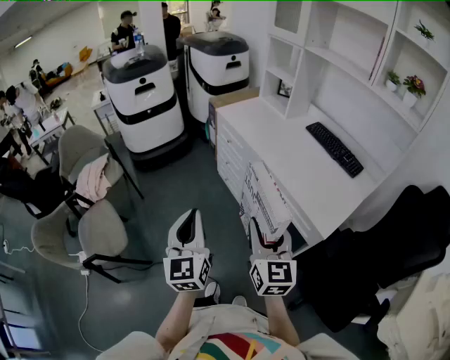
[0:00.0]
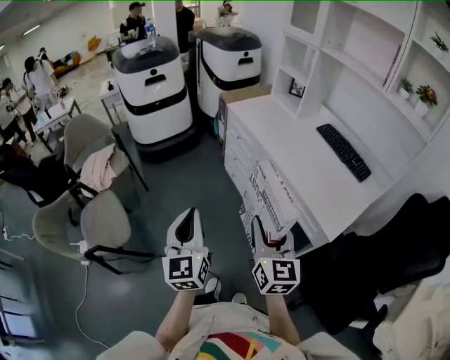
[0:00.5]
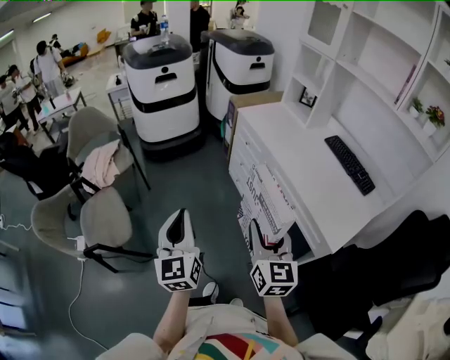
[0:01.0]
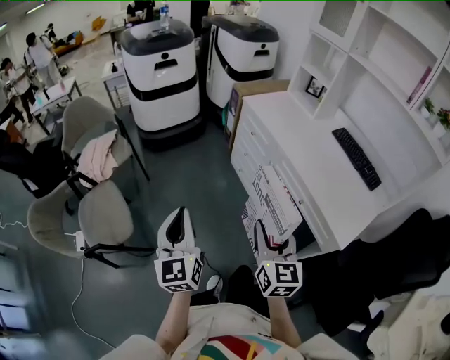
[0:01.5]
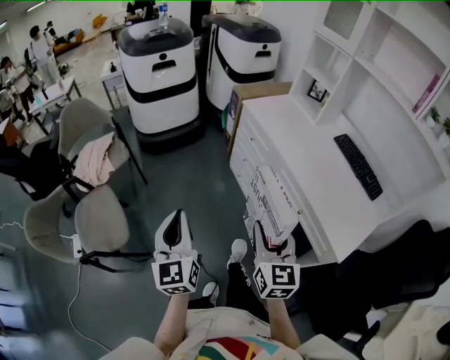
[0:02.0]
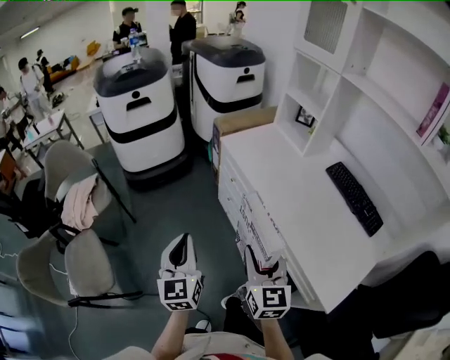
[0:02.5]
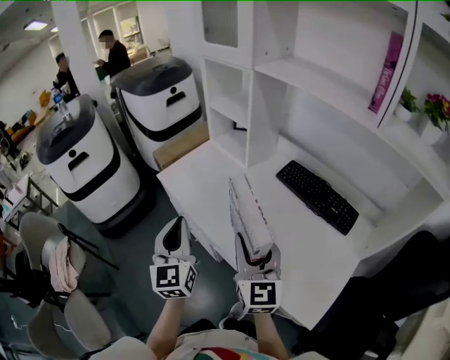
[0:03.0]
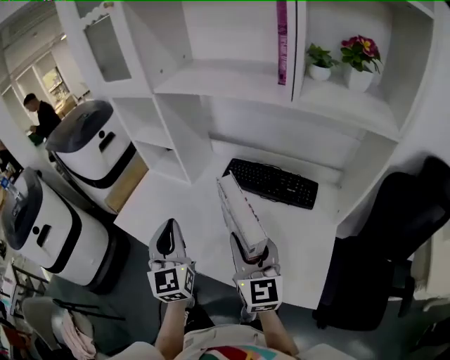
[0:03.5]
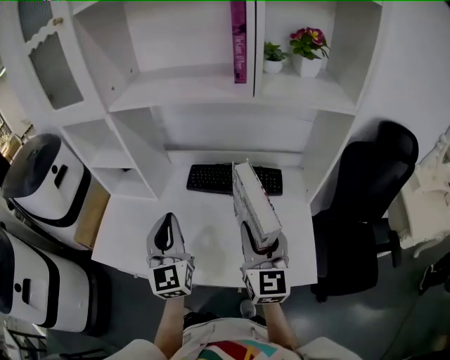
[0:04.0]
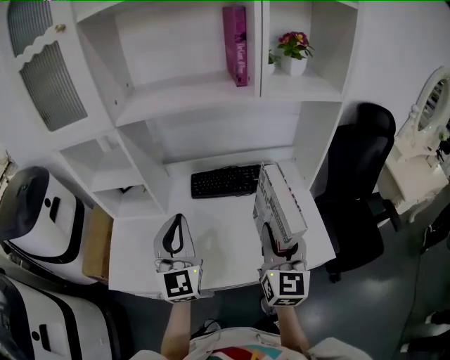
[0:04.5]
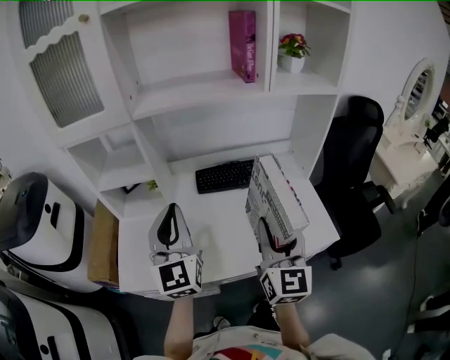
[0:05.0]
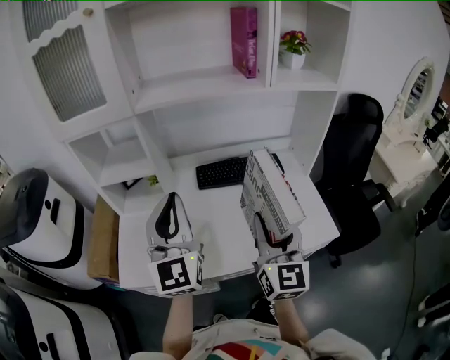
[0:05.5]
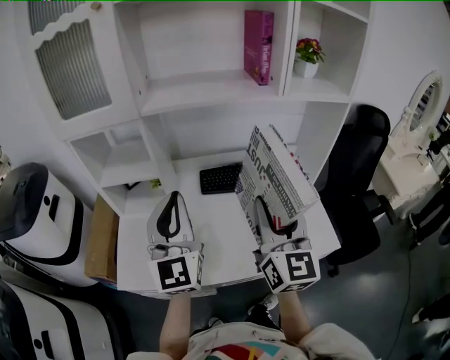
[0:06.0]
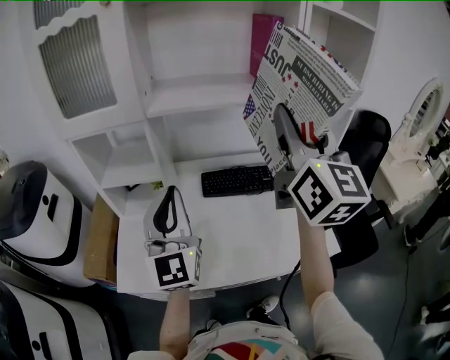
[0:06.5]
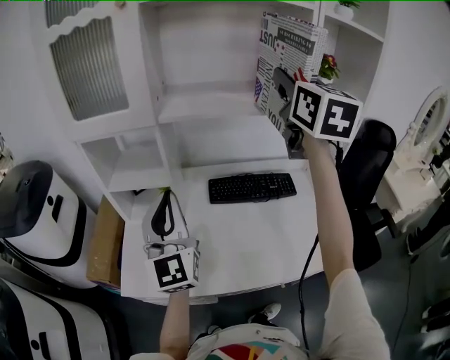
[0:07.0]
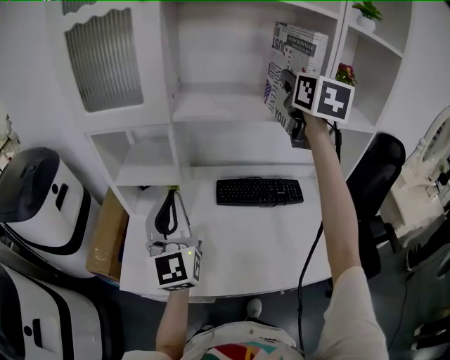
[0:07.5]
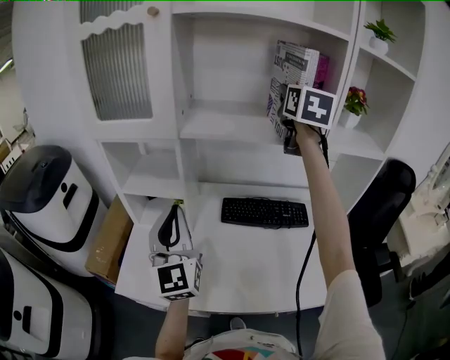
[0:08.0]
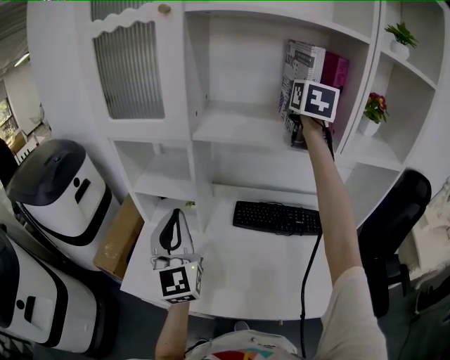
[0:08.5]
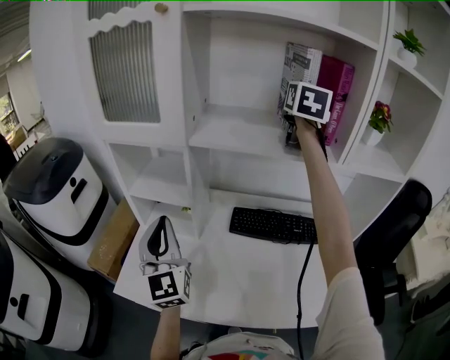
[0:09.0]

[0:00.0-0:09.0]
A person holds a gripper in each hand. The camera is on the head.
0:00.0 to 0:02.0: The right gripper travels forward and to the left by approximately 15 cm, while the left gripper heads to the left and forward, covering approximately 15 cm.
0:02.0 to 0:04.5: Both grippers are carried about 60 cm. The left gripper changes its angle by approximately 80 degrees; the right gripper turns by about 80 degrees.
0:04.5 to 0:07.0: The right gripper goes some 40 cm upward and forward. The left gripper moves to the left and upward, some 15 cm.
0:07.0 to 0:09.0: The right gripper shifts approximately 20 cm forward; the left gripper ends up roughly 5 cm from where it was.

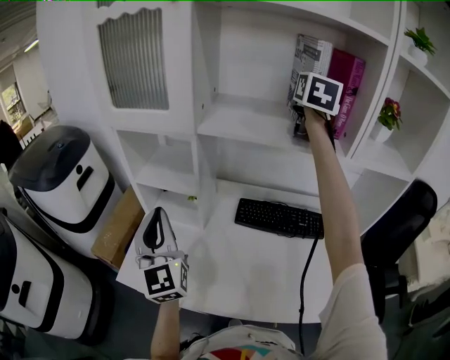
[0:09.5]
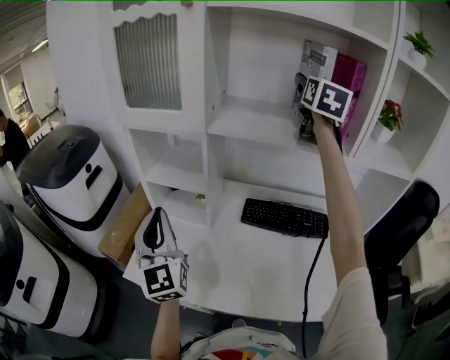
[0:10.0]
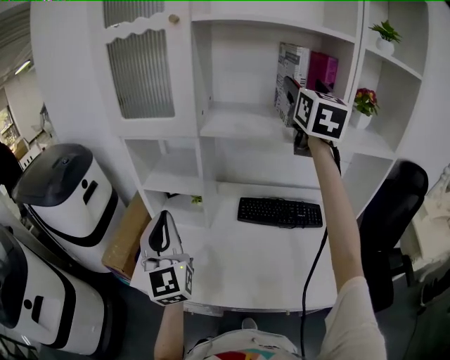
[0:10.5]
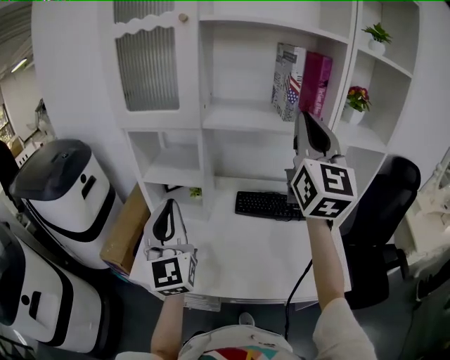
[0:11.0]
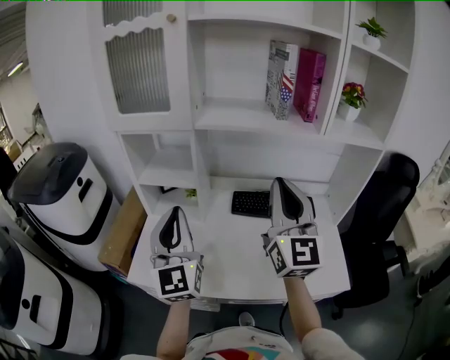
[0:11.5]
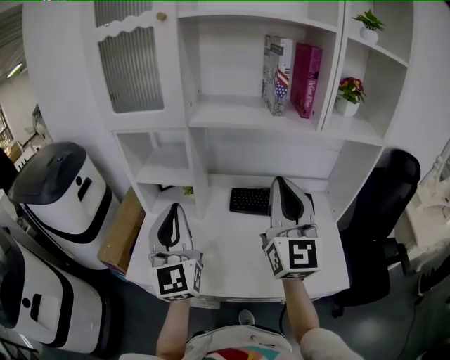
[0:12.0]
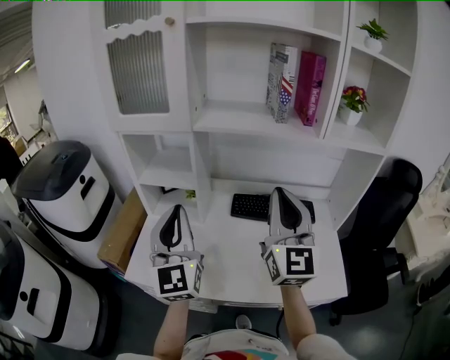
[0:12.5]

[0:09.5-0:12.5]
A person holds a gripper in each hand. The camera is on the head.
0:09.5 to 0:11.0: The left gripper shifts about 5 cm backward. The right gripper heads backward, covering approximately 30 cm, swivels some 30 degrees, and closes.
0:11.0 to 0:12.5: The right gripper shifts approximately 15 cm downward, while the left gripper is displaced to the right by some 5 cm.

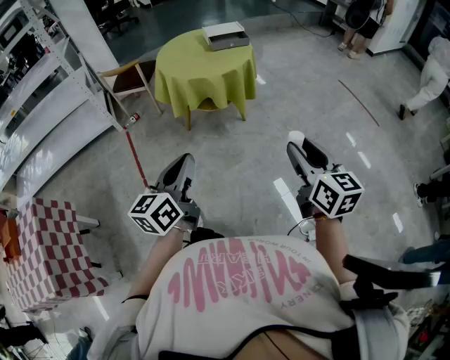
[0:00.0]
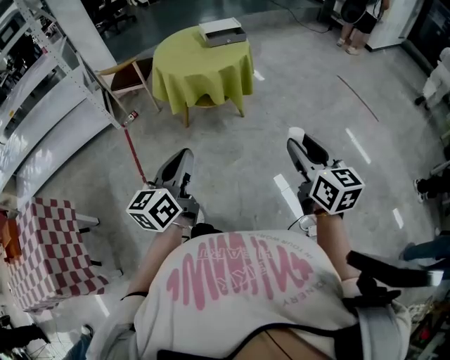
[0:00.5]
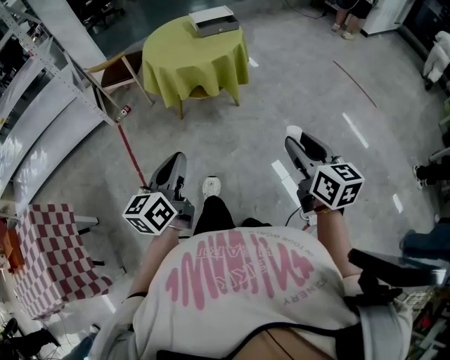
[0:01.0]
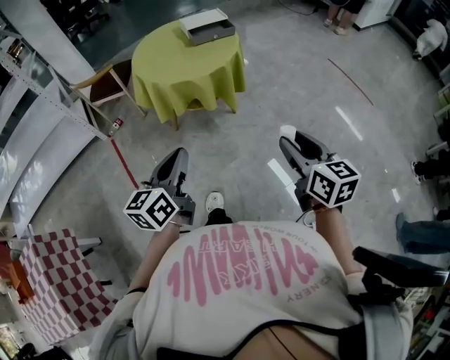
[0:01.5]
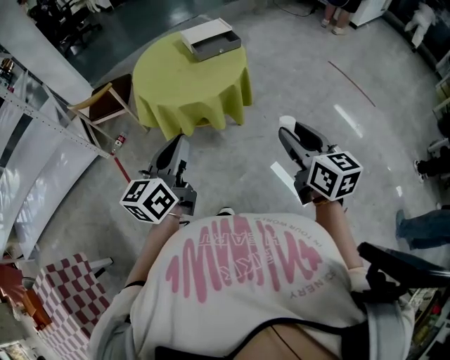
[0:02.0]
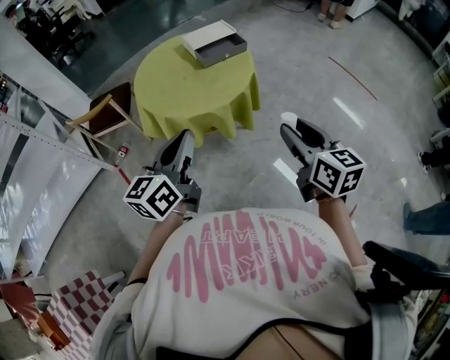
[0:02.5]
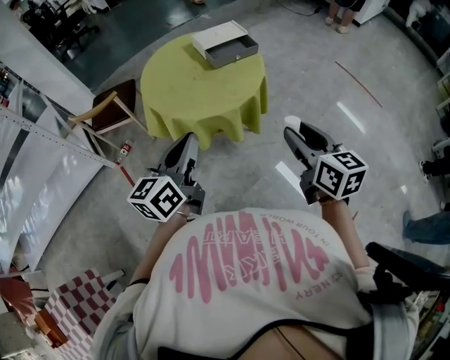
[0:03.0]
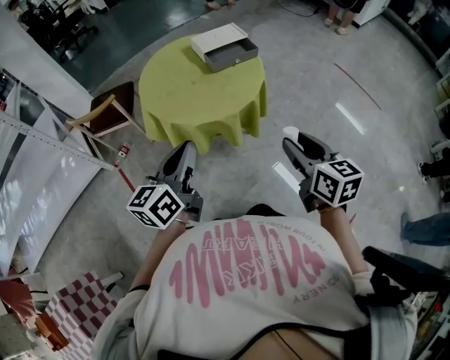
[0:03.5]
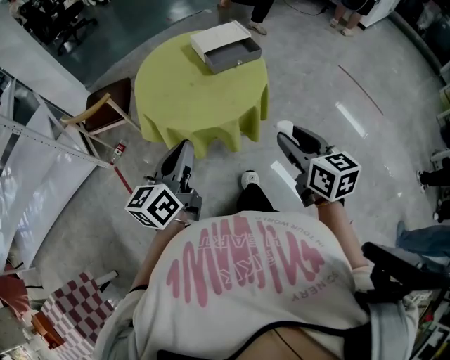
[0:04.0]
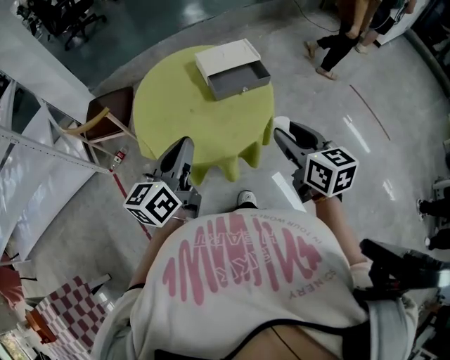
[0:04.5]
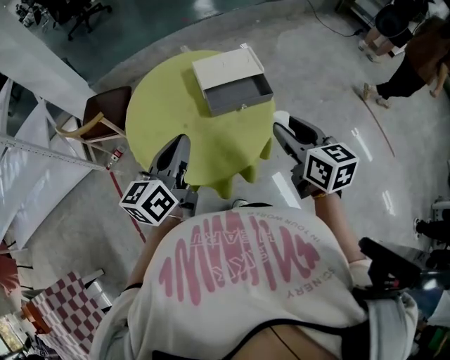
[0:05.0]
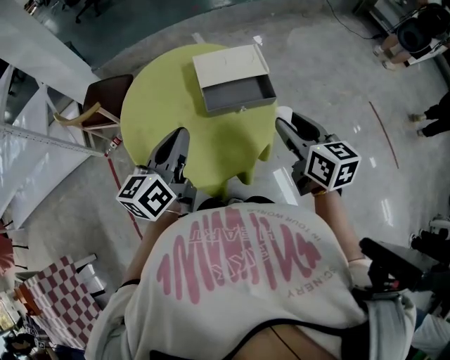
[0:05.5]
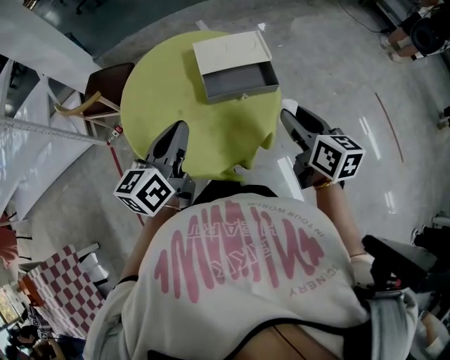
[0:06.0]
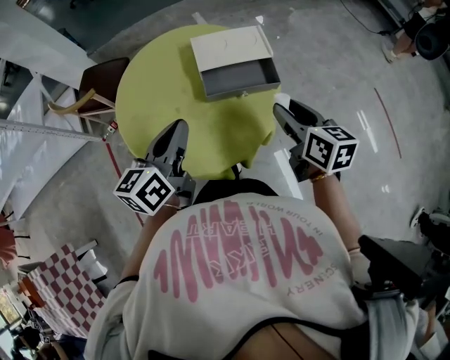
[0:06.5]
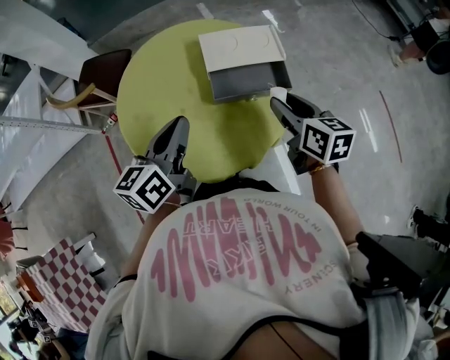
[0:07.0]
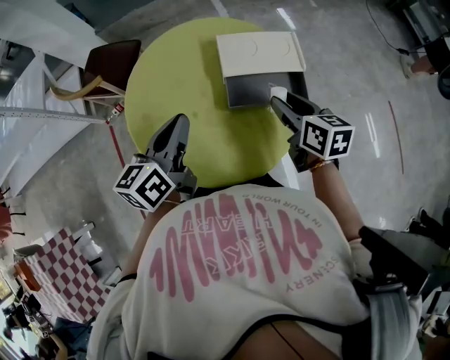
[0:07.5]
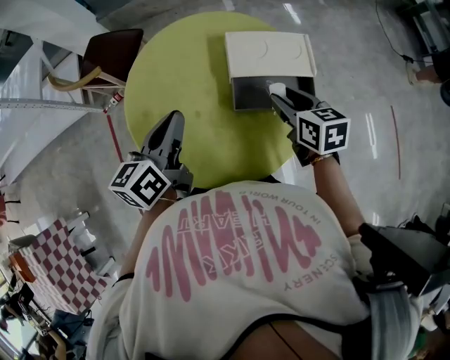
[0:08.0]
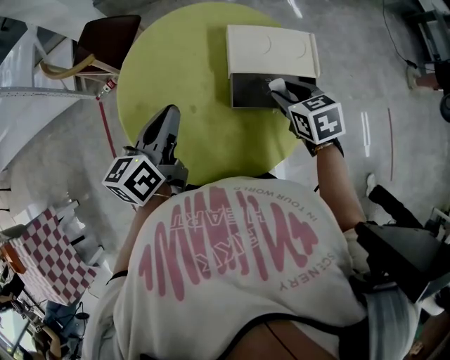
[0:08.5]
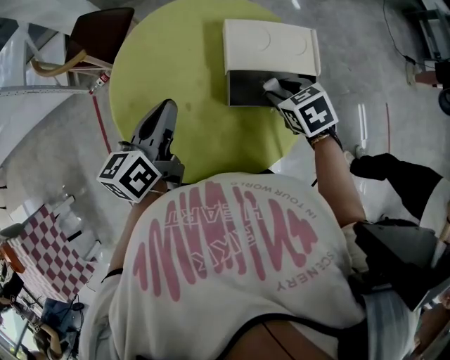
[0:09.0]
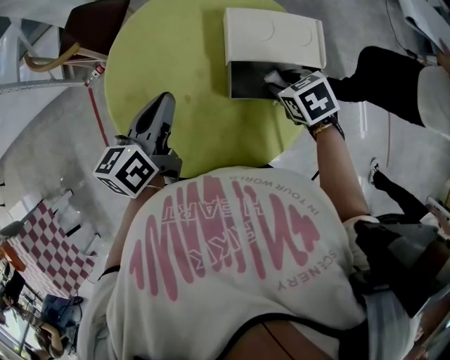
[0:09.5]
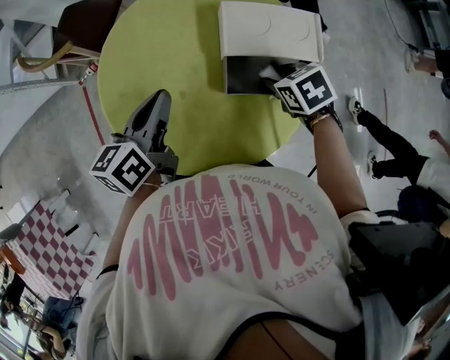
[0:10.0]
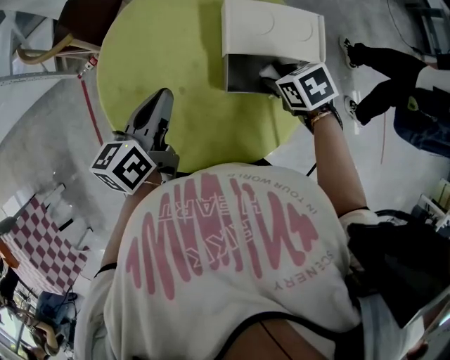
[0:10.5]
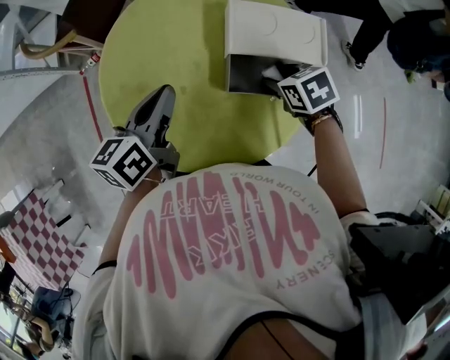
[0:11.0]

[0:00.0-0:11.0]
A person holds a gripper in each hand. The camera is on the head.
0:00.0 to 0:02.0: Both grippers travel together forward, approximately 25 cm.
0:02.0 to 0:03.5: The grippers both shift forward and to the left by approximately 10 cm.
0:03.5 to 0:05.5: The grippers both shift forward by approximately 35 cm.
0:05.5 to 0:07.5: The left gripper heads forward and to the left, covering approximately 10 cm. The right gripper travels forward, downward and to the left by about 15 cm.
0:07.5 to 0:09.0: The right gripper goes about 10 cm downward, and tilts its fingers approximately 30 degrees downward. Meanwhile the left gripper shifts by about 5 cm.
0:09.0 to 0:11.0: The grippers make only small movements.

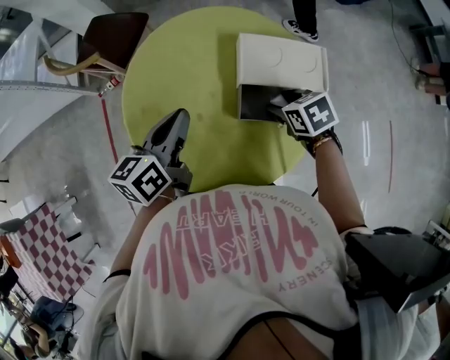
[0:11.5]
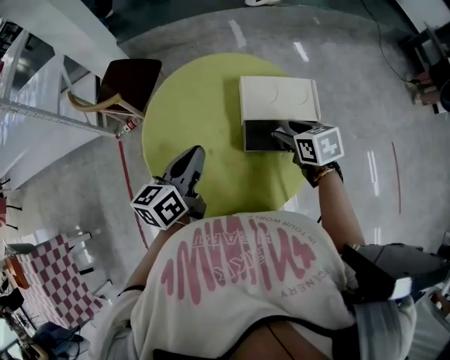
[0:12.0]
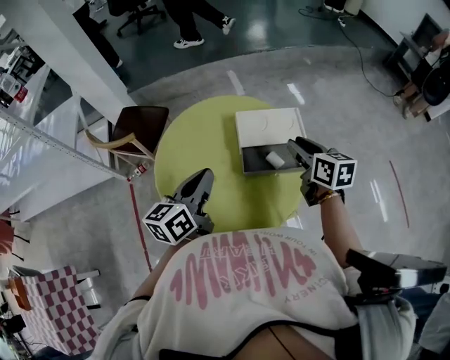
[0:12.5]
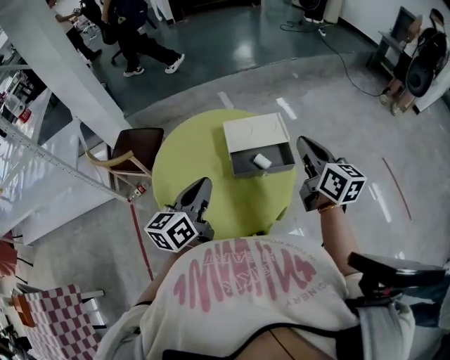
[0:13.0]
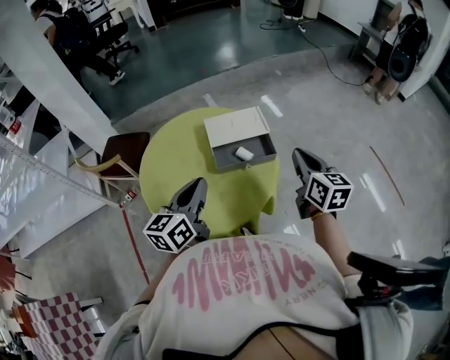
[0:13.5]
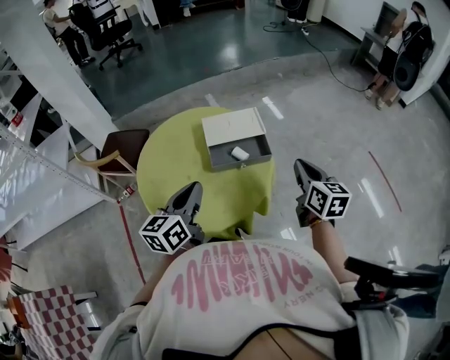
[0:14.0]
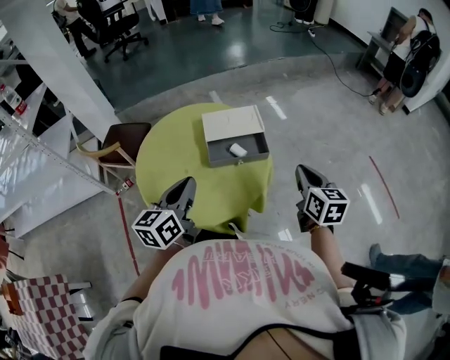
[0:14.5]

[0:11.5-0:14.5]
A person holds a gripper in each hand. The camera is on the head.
0:11.5 to 0:13.0: The right gripper is displaced upward by approximately 25 cm, points its fingers roughly 60 degrees further upward, and closes up, while the left gripper shifts about 10 cm upward.
0:13.0 to 0:14.5: The right gripper moves to the right, backward and downward, about 15 cm, while the left gripper goes some 5 cm backward.
